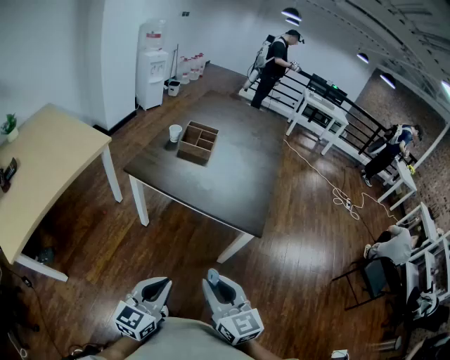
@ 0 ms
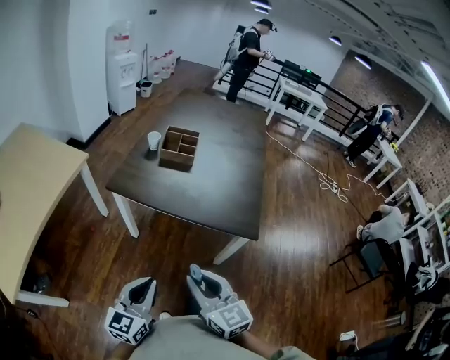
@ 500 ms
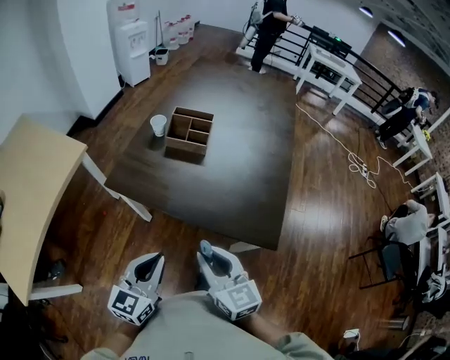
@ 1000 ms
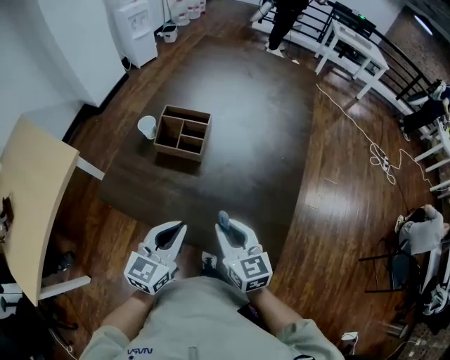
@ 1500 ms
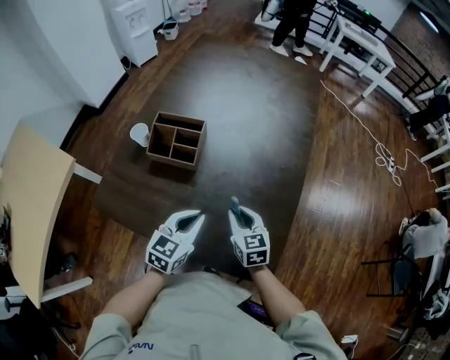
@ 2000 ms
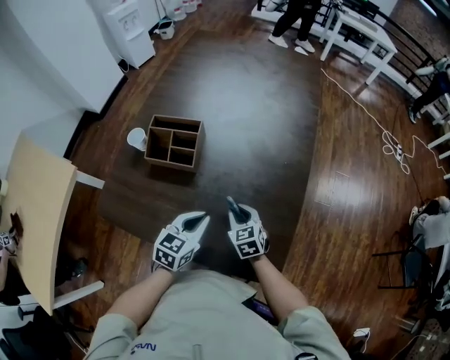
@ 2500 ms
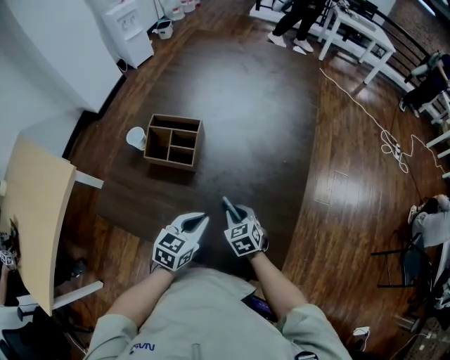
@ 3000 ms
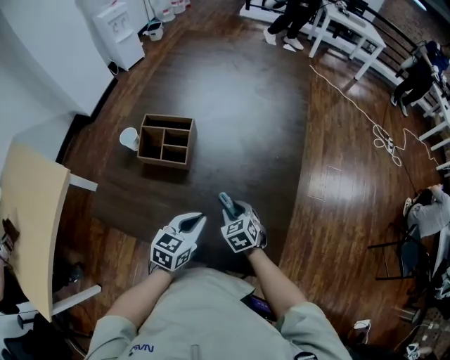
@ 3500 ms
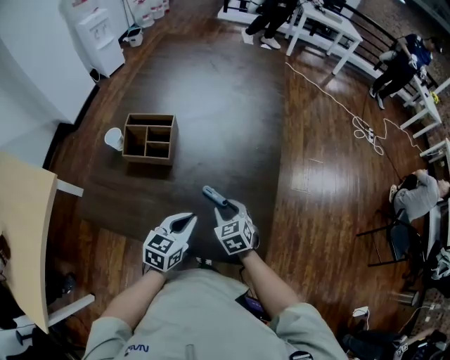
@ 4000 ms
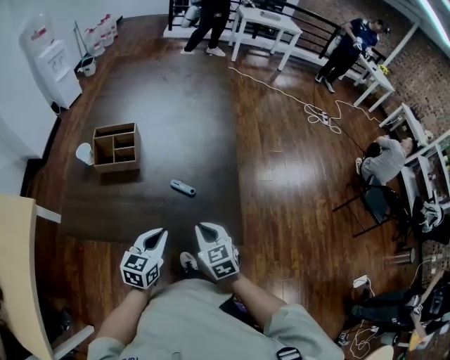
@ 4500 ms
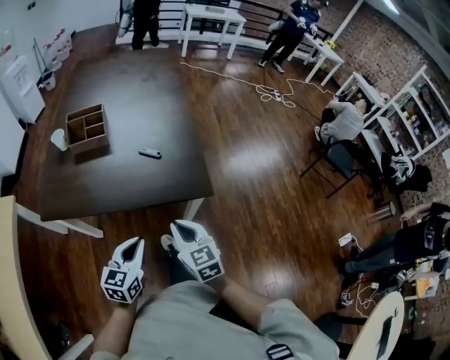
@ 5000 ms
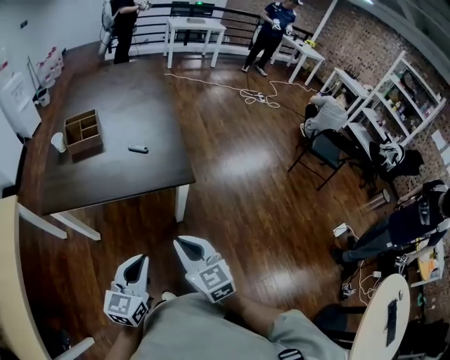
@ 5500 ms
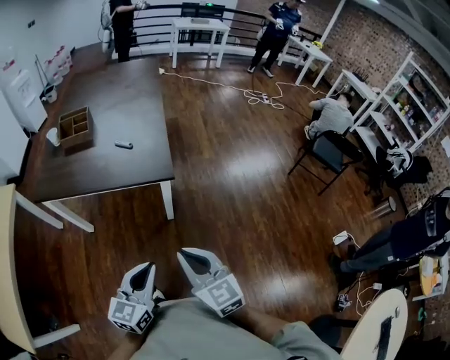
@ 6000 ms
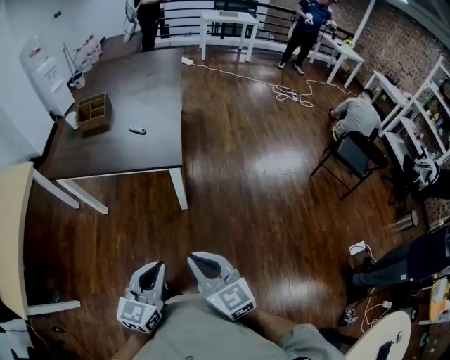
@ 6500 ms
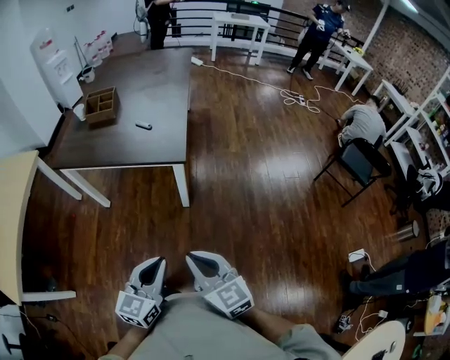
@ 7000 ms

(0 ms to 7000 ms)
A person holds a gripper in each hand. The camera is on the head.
0 ms - 2000 ms: Both grippers are carried forward, roughly 50 cm. The left gripper turns by about 20 degrees; the right gripper swivels approximately 20 degrees.
2000 ms - 3500 ms: The right gripper heads downward, covering roughly 10 cm, and turns by approximately 20 degrees.
3500 ms - 5000 ms: The right gripper goes about 30 cm backward and upward, changes its angle by about 40 degrees, and closes up; the left gripper shifts some 25 cm backward.
5000 ms - 7000 ms: The two grippers go roughly 30 cm backward and to the right.

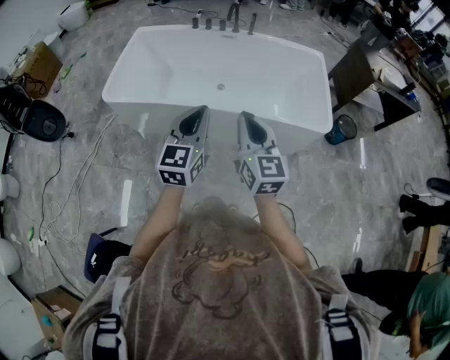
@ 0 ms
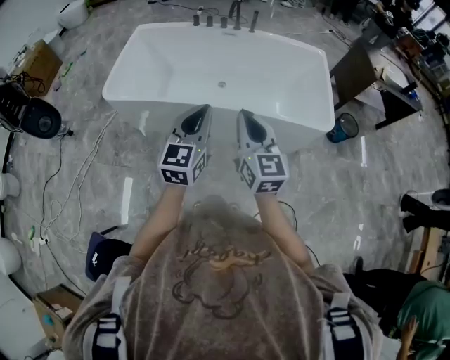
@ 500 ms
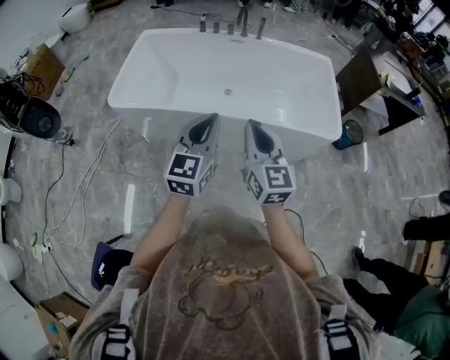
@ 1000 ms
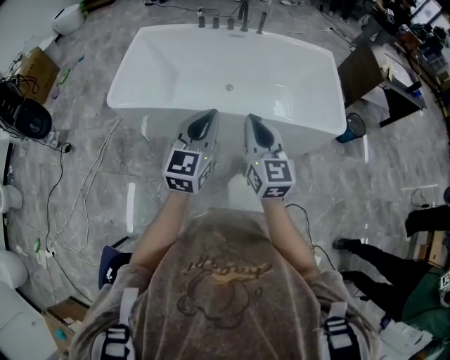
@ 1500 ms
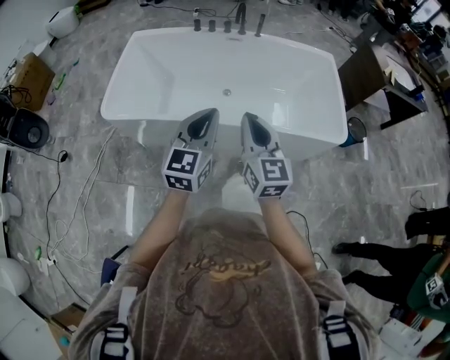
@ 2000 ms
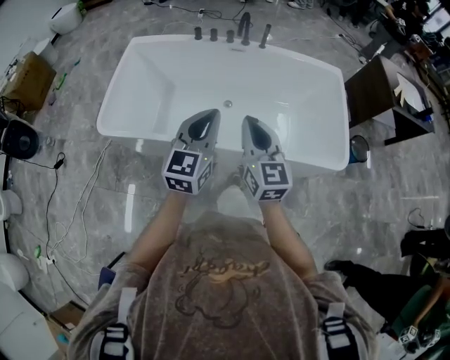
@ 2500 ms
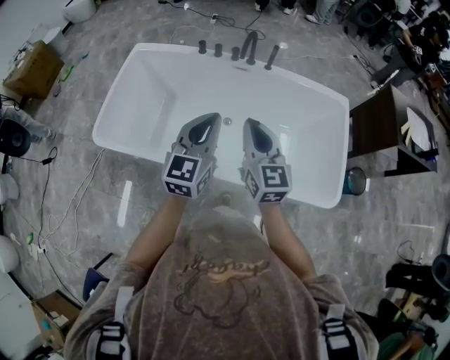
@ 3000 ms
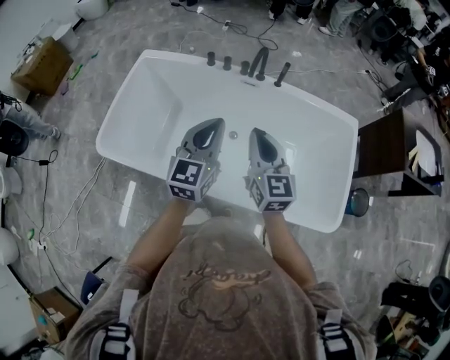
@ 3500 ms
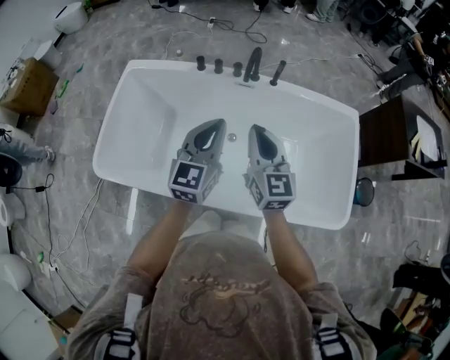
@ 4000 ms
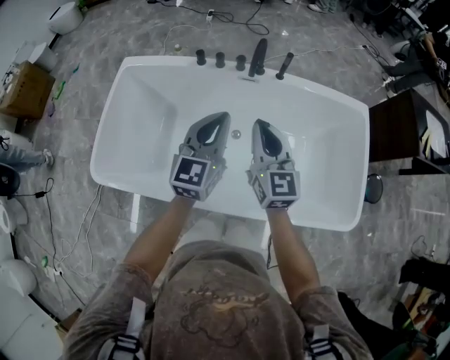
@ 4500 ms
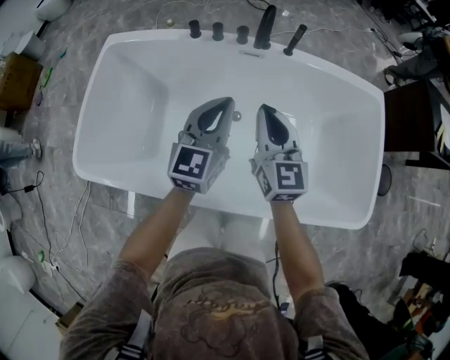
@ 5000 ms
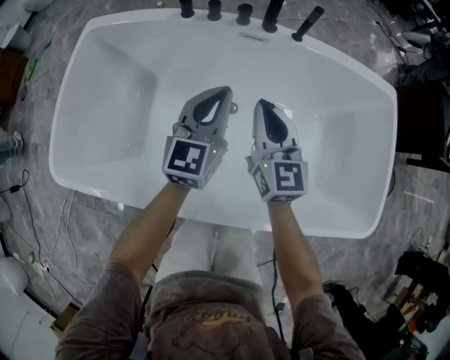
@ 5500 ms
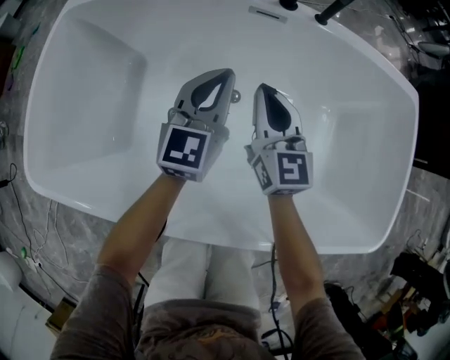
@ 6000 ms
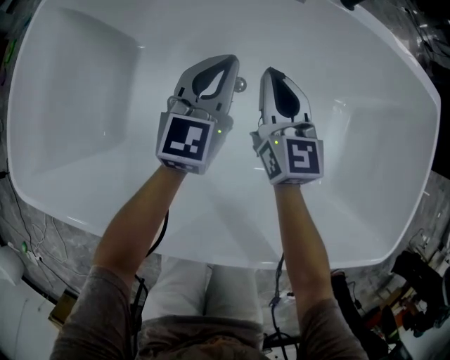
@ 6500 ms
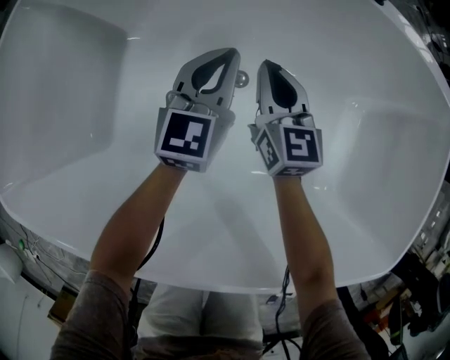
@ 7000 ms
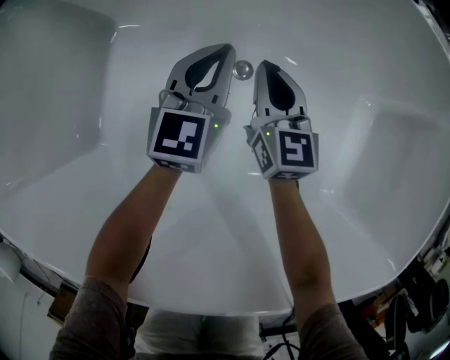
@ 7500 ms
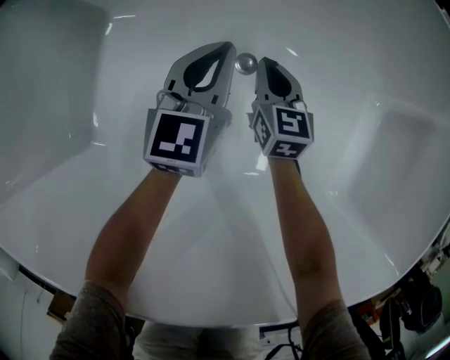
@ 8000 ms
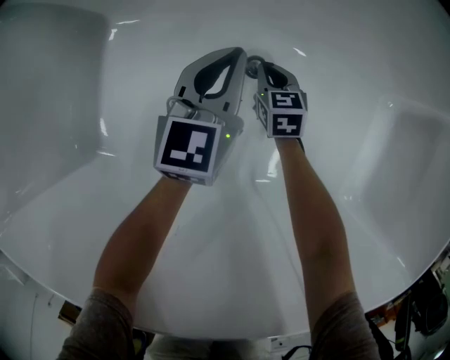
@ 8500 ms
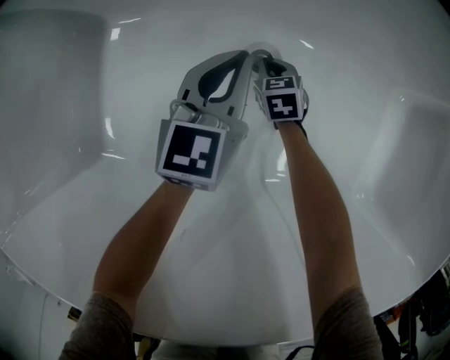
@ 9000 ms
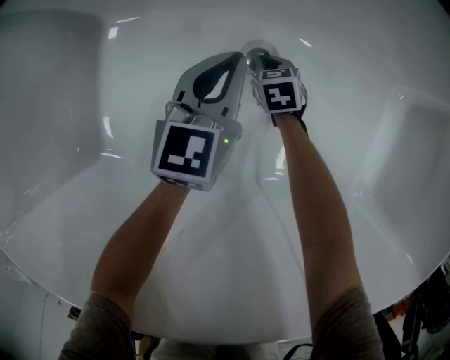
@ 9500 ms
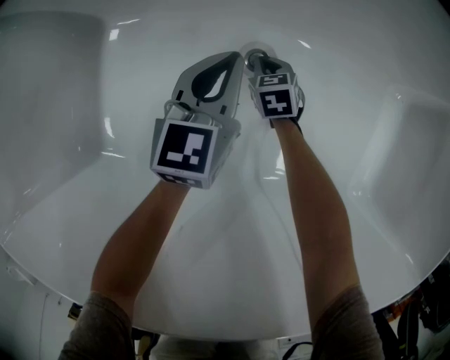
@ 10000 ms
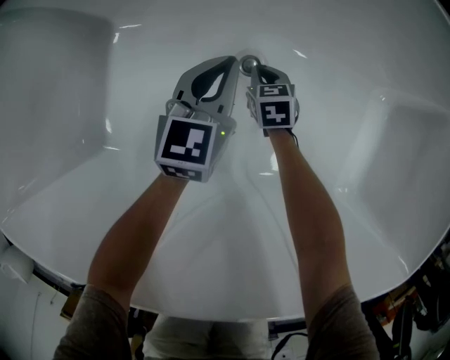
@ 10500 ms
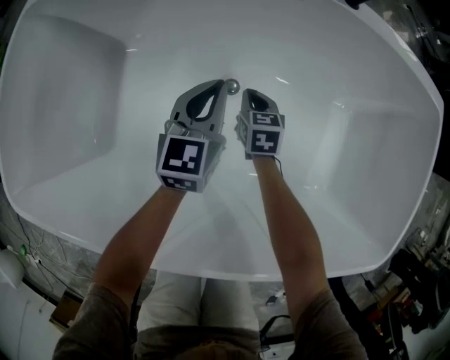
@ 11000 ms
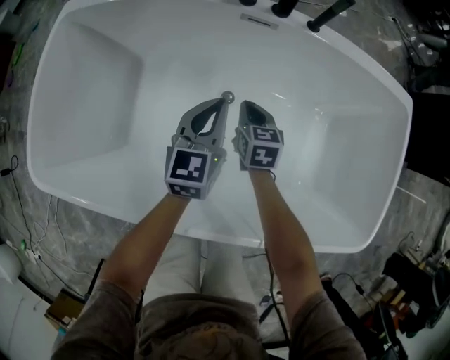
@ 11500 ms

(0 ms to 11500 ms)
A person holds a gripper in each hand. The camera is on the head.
0 ms - 2000 ms: The two grippers go some 15 cm forward and to the left.
2000 ms - 4000 ms: Both grippers move forward, roughly 40 cm.
4000 ms - 6000 ms: The right gripper goes approximately 35 cm downward, while the left gripper heads downward and forward, covering some 35 cm.
6000 ms - 7500 ms: Both grippers move downward, about 25 cm.
7500 ms - 9500 ms: The right gripper moves downward, about 25 cm, and points its fingers roughly 40 degrees further downward; the left gripper heads downward, covering approximately 10 cm.
9500 ms - 11500 ms: Both grippers travel together upward, roughly 35 cm. The right gripper changes its angle by some 20 degrees.

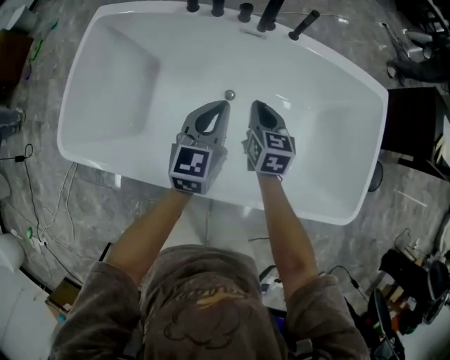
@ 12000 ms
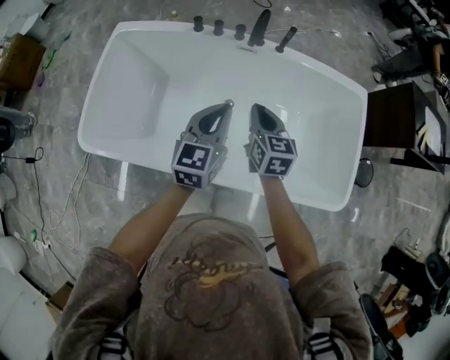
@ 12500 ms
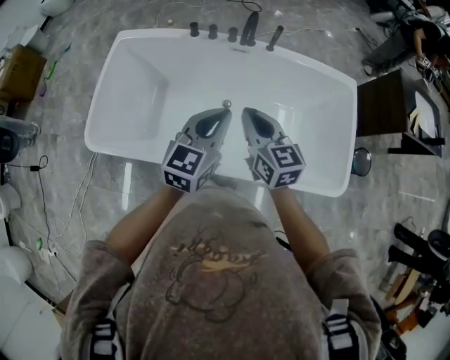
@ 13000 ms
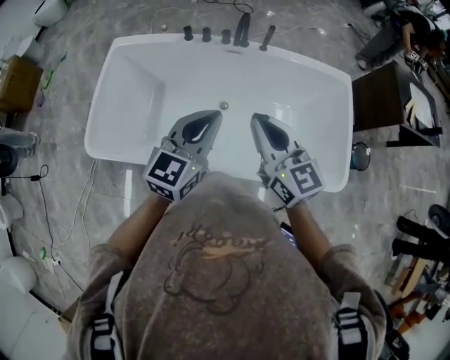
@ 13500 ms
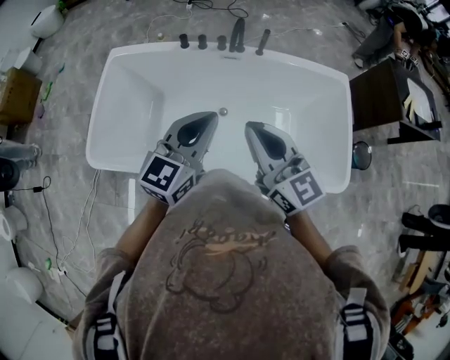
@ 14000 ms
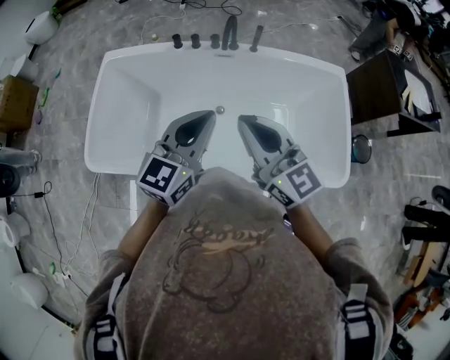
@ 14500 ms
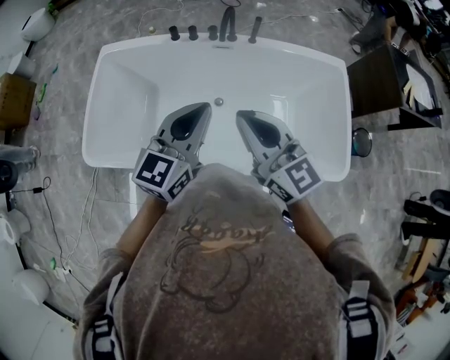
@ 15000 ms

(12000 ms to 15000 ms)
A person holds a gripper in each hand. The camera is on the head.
12000 ms - 13500 ms: Both grippers move upward and backward, some 30 cm. The right gripper changes its angle by approximately 30 degrees.
13500 ms - 15000 ms: The grippers make only small movements.

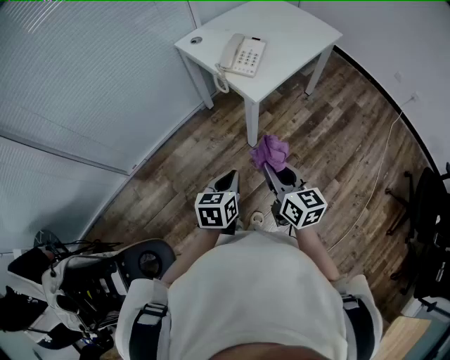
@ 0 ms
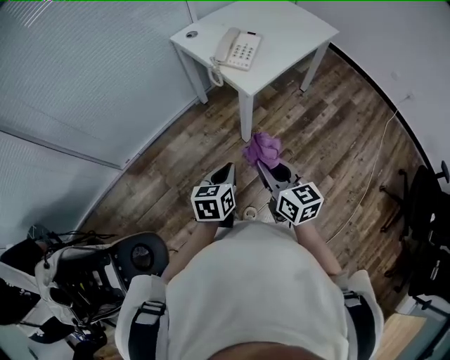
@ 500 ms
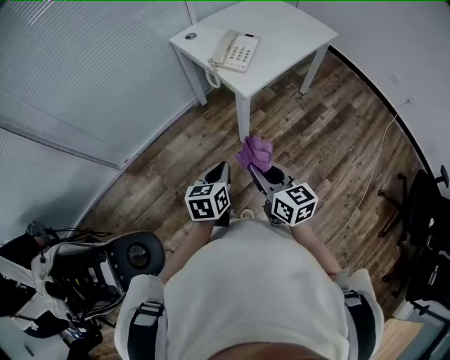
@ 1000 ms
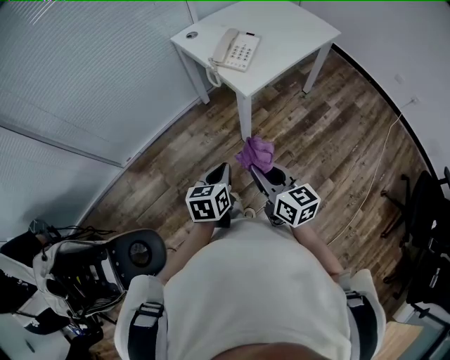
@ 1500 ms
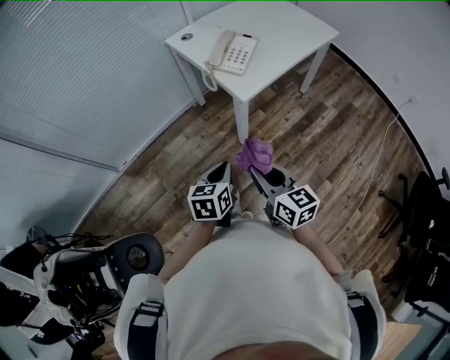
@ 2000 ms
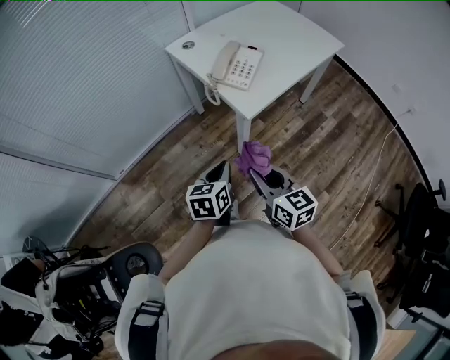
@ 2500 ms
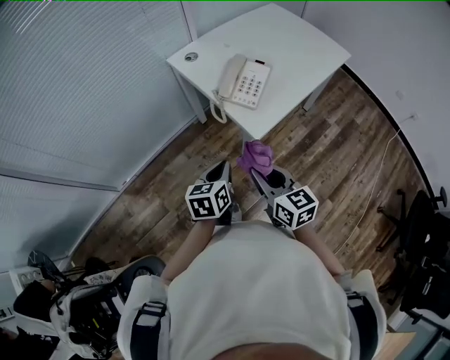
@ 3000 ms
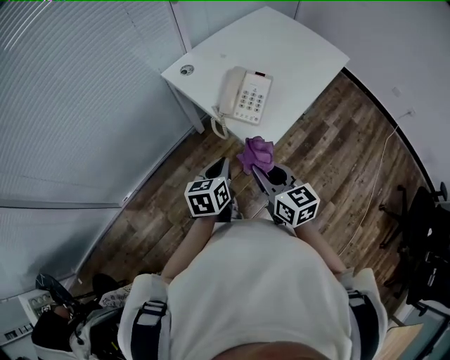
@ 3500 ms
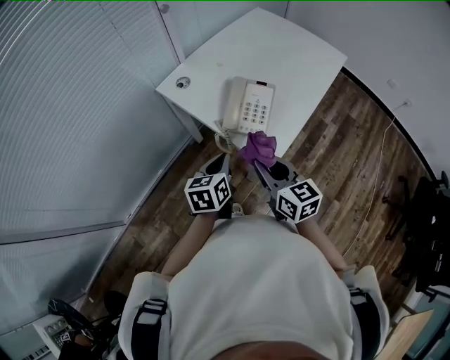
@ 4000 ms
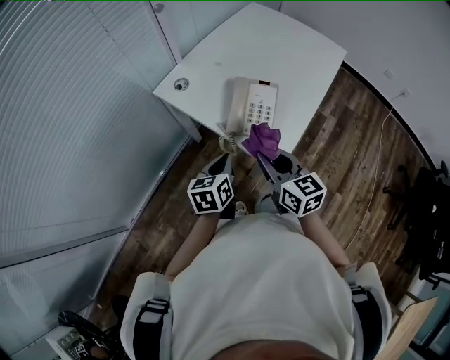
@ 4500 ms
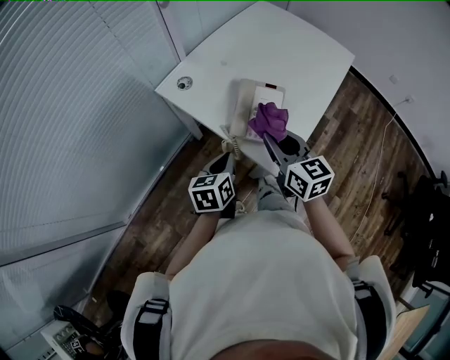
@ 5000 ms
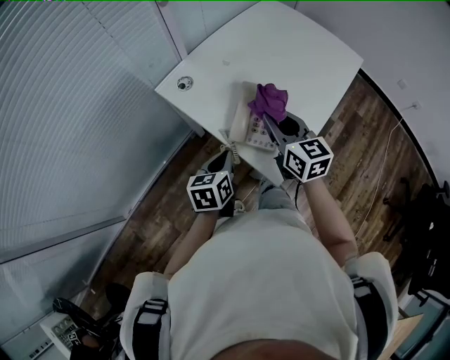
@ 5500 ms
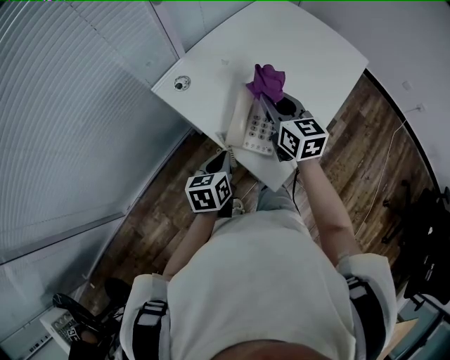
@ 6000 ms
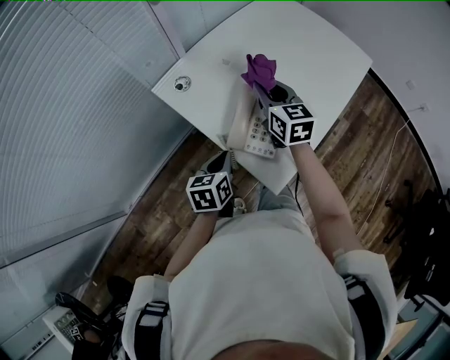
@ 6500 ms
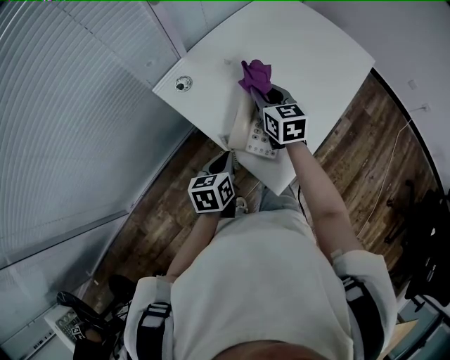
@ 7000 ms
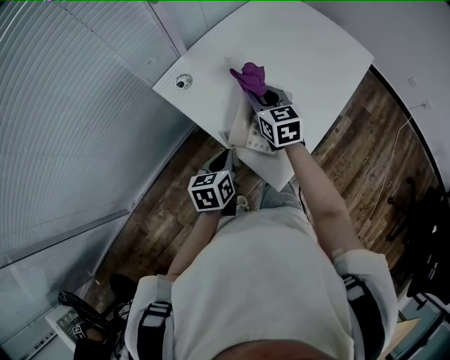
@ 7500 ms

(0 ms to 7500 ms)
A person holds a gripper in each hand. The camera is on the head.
0 ms - 2000 ms: The grippers make only small movements.
2000 ms - 4000 ms: The grippers both shift forward by about 35 cm.
4000 ms - 5500 ms: The right gripper is displaced forward by about 20 cm; the left gripper heads forward, covering about 5 cm.
5500 ms - 7500 ms: The right gripper shifts roughly 10 cm forward and downward.
